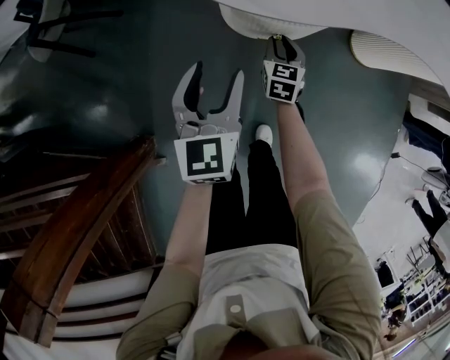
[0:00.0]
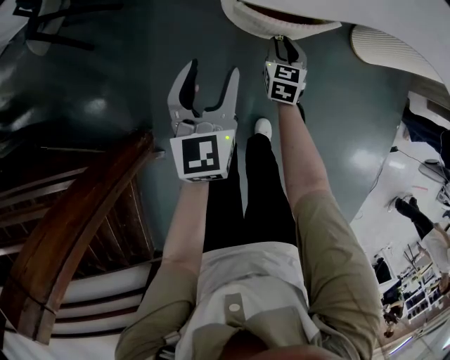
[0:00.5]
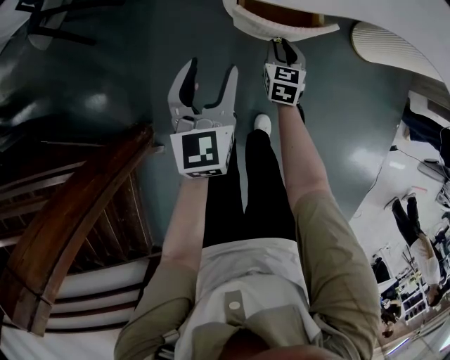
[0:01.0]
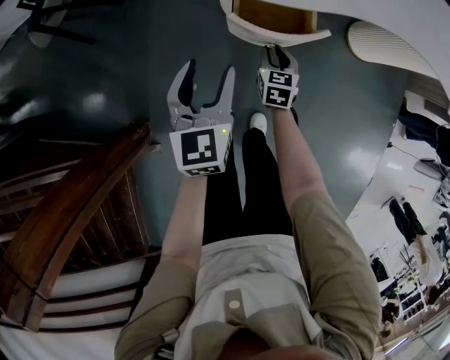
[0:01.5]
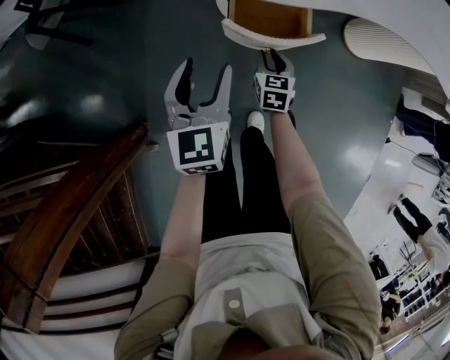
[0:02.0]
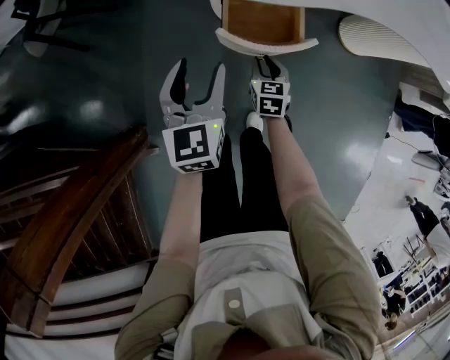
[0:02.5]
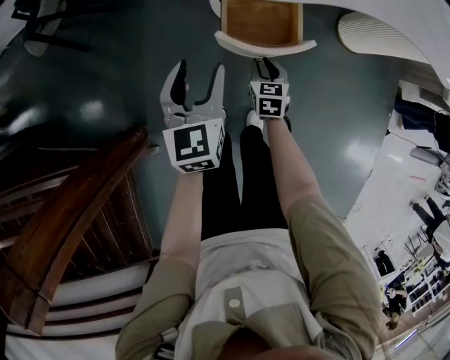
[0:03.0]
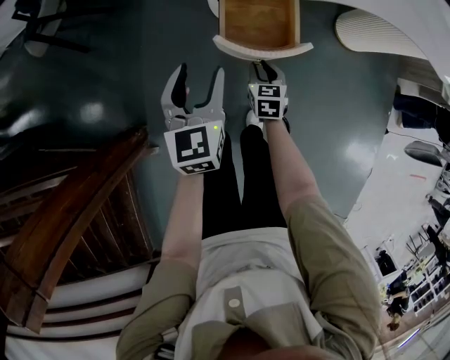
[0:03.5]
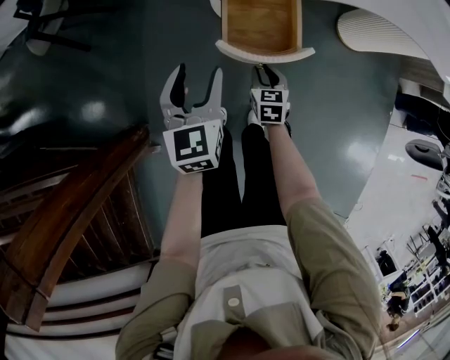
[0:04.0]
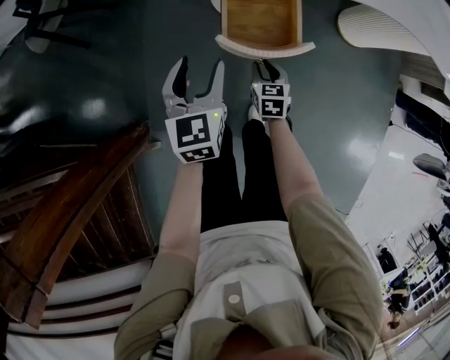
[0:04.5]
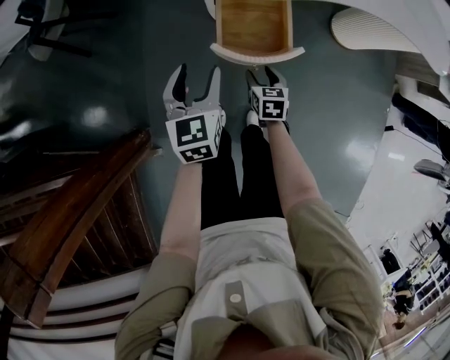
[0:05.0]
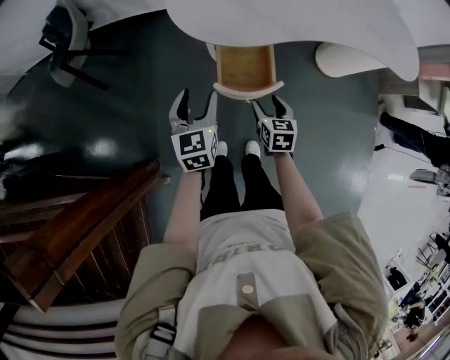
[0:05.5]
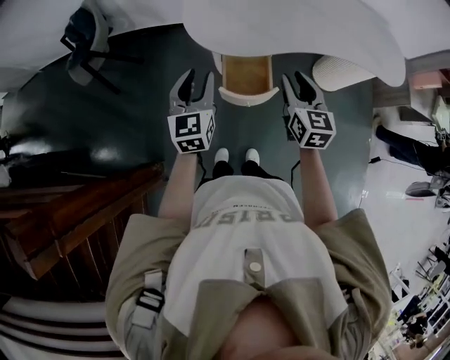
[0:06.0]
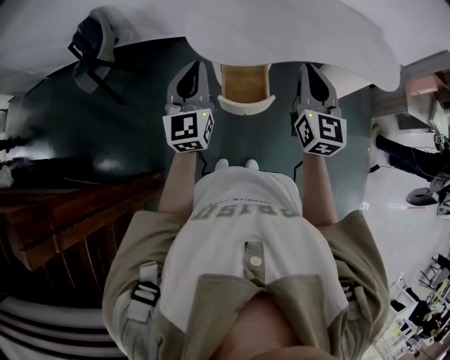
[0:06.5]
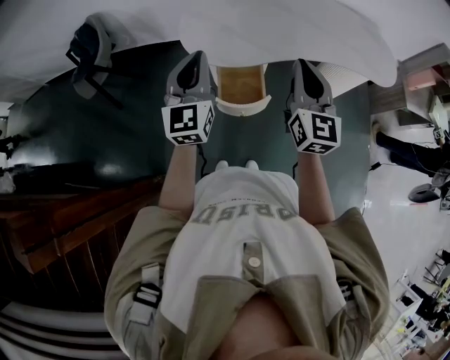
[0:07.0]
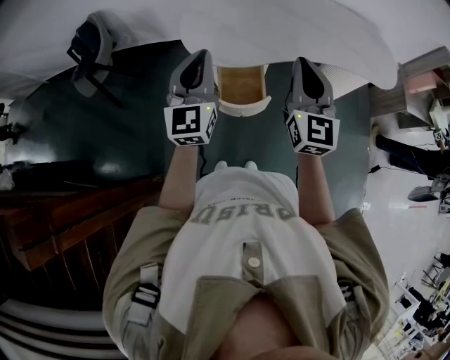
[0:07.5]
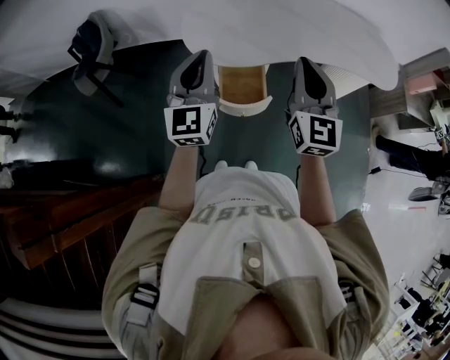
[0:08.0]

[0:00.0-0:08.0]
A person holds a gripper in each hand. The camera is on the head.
0:00.0 to 0:02.0: The right gripper travels backward by about 10 cm.
0:02.0 to 0:04.0: The right gripper shifts about 10 cm backward.
0:04.0 to 0:06.0: The left gripper is displaced upward by some 20 cm, and closes up. The right gripper heads upward, covering about 40 cm, and swivels approximately 30 degrees.
0:06.0 to 0:08.0: The left gripper heads upward and to the right, covering about 15 cm, and closes its fingers; the right gripper shifts approximately 15 cm upward, changes its angle by some 30 degrees, and closes up.

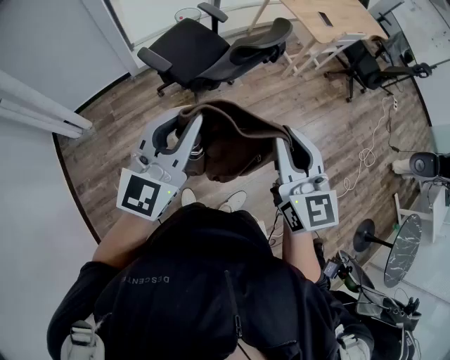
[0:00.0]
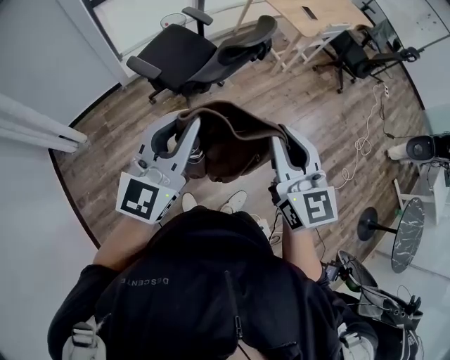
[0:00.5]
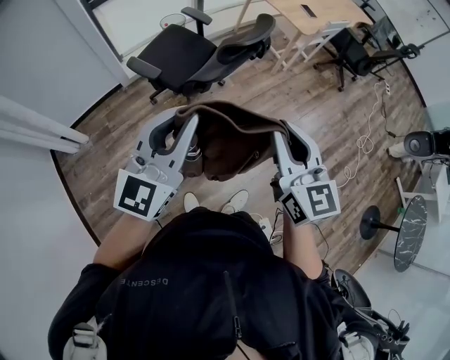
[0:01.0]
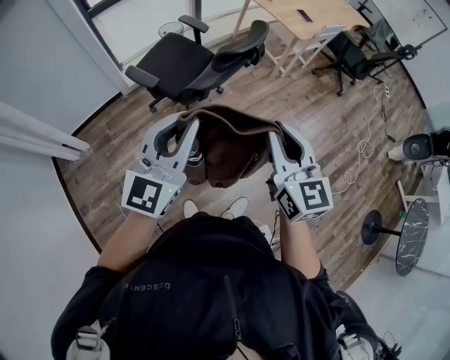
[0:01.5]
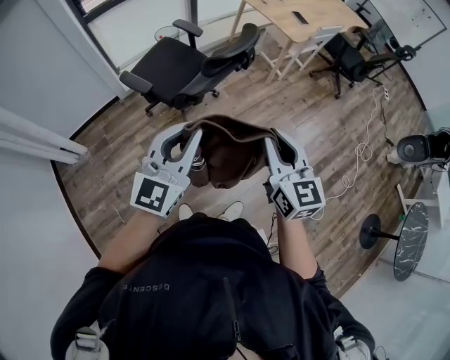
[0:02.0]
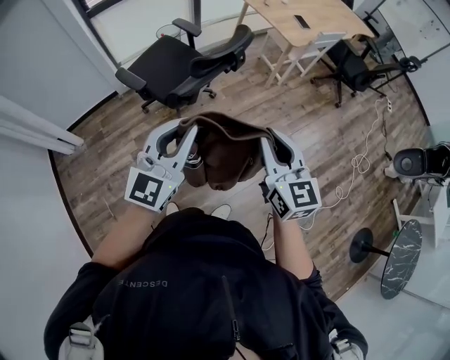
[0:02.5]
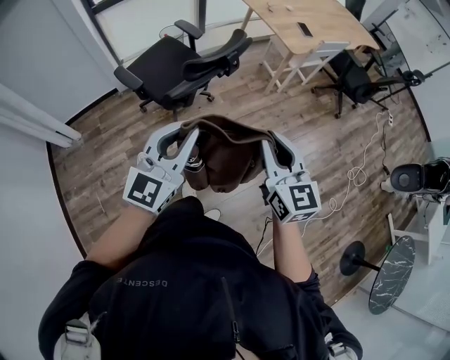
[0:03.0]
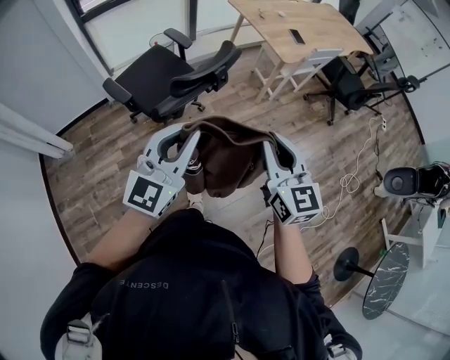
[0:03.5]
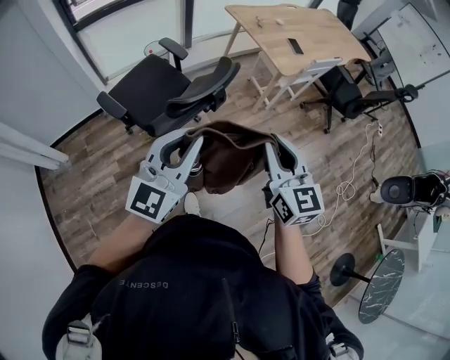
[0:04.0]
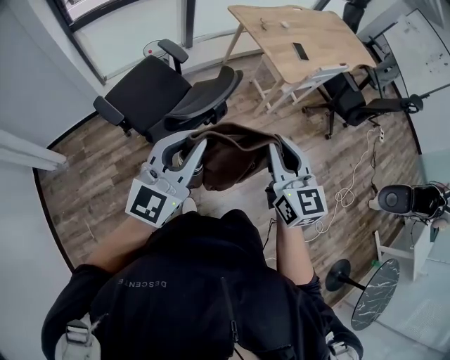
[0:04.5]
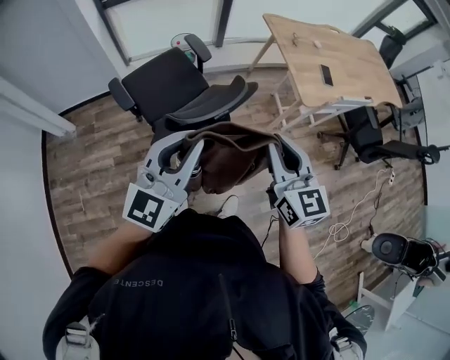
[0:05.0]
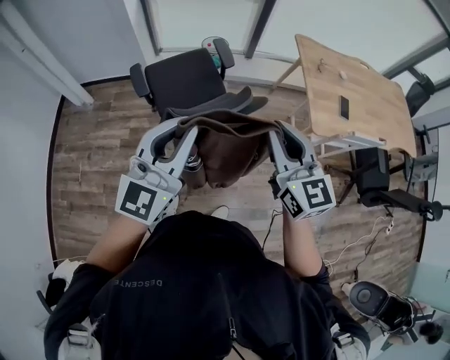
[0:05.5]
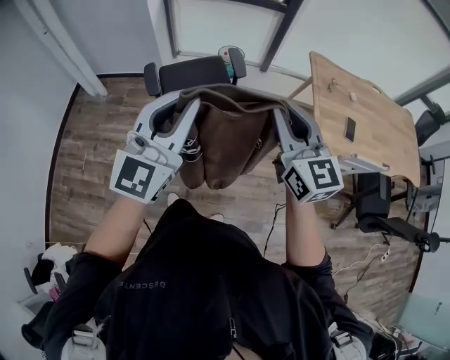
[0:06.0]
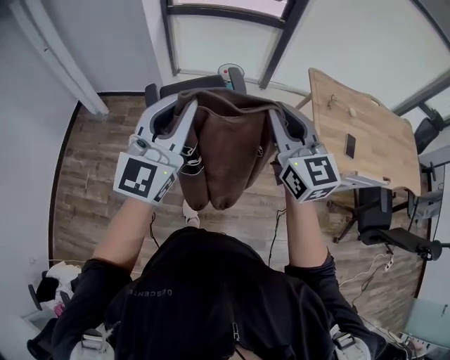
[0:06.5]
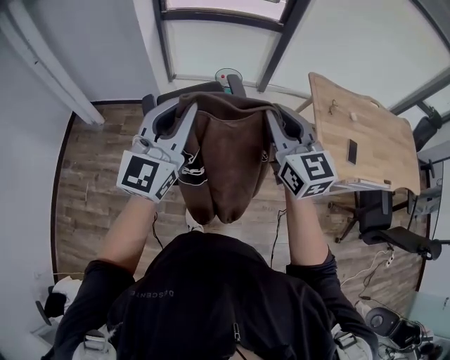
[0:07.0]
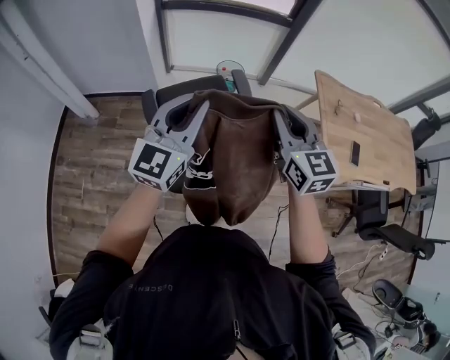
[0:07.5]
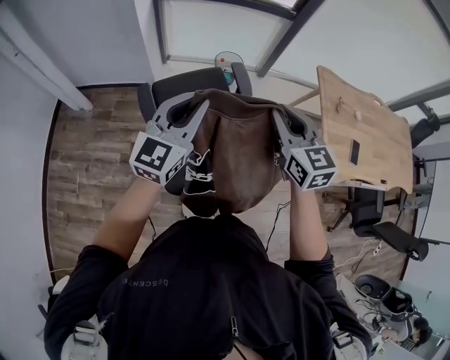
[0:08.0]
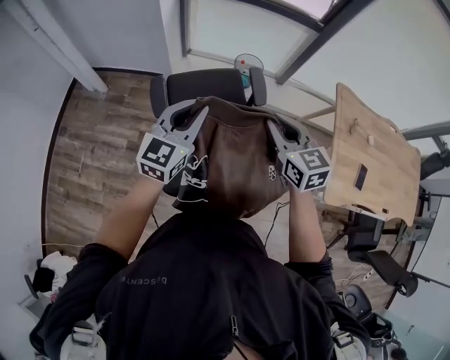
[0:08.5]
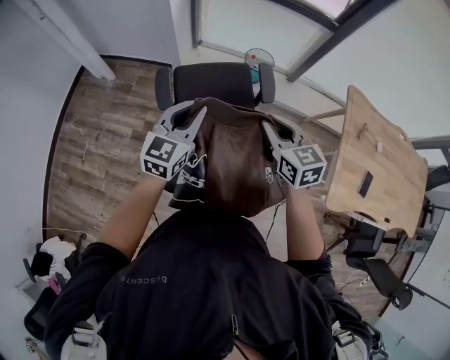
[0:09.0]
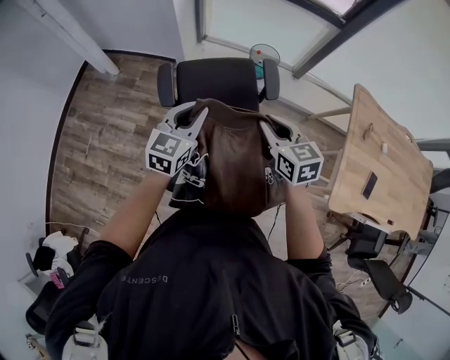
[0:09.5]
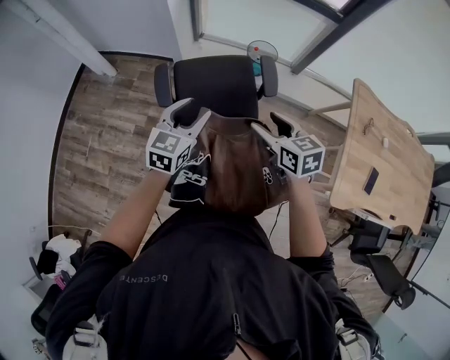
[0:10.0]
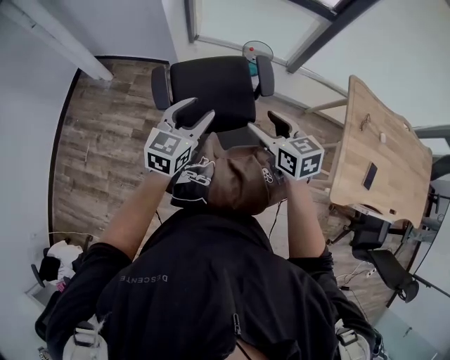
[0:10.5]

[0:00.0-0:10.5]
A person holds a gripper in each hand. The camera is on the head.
0:00.0 to 0:02.0: The right gripper goes about 10 cm to the right and downward. The left gripper is displaced to the right by about 10 cm.
0:02.0 to 0:04.0: The grippers both shift forward and to the right by approximately 25 cm.
0:04.0 to 0:06.5: The left gripper shifts by approximately 25 cm, and rotates some 40 degrees, while the right gripper ends up some 30 cm from where it was, and rotates some 40 degrees.
0:06.5 to 0:08.5: Both grippers travel together forward and downward, approximately 30 cm. The left gripper changes its angle by approximately 20 degrees, while the right gripper changes its angle by approximately 30 degrees.
0:08.5 to 0:10.5: Both grippers travel together downward, approximately 10 cm. The right gripper opens; the left gripper opens up.

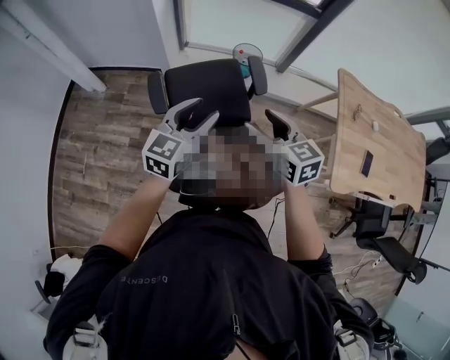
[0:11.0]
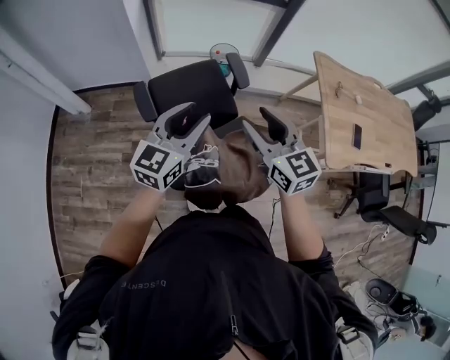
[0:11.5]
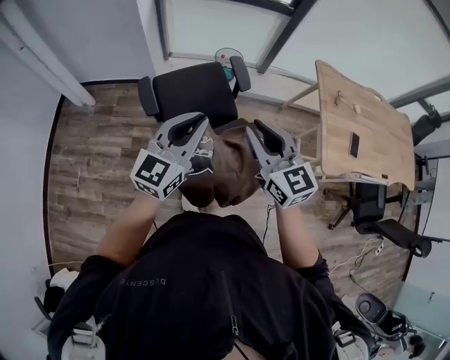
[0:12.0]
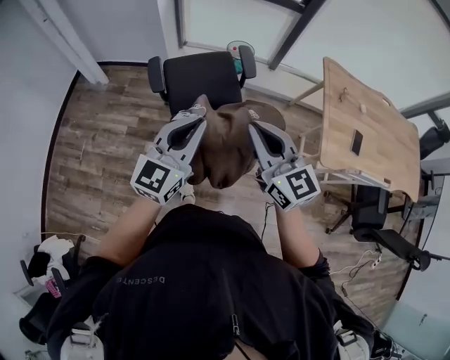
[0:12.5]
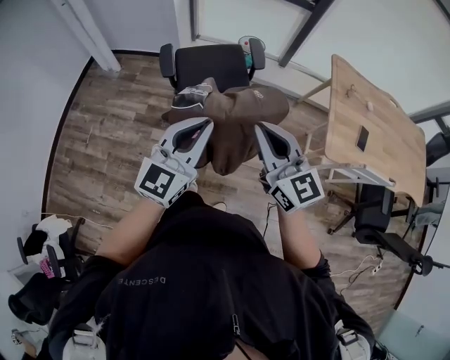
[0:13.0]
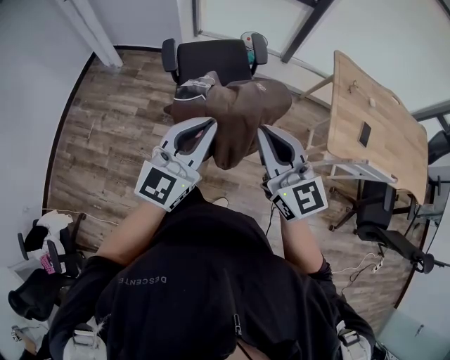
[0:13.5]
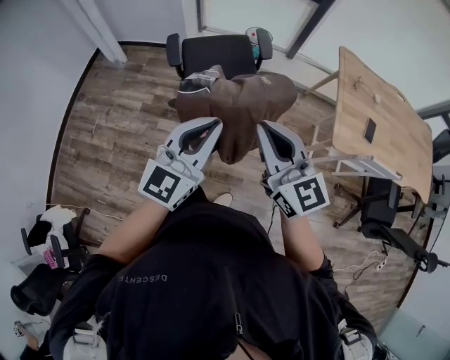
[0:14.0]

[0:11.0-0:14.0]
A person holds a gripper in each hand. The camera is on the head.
0:11.0 to 0:12.5: The right gripper shifts approximately 25 cm backward and upward, rotates roughly 30 degrees, and closes. Meanwhile the left gripper goes roughly 25 cm backward, and closes up.
0:12.5 to 0:14.0: Both grippers move backward, some 10 cm.

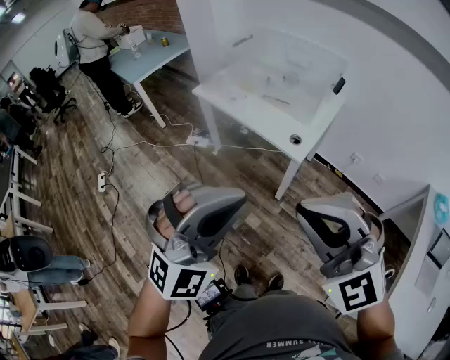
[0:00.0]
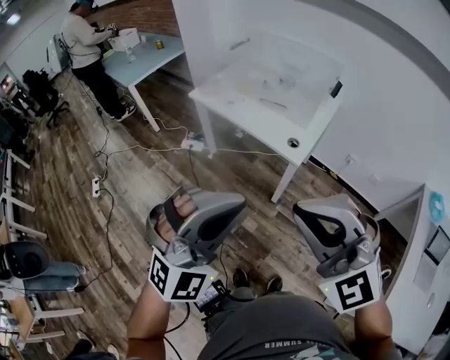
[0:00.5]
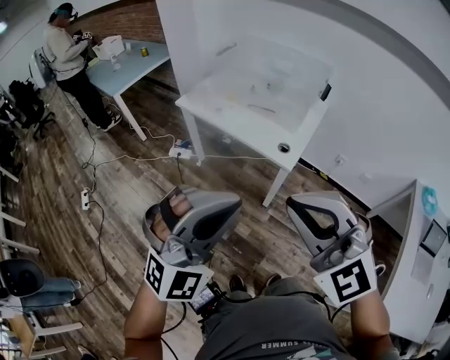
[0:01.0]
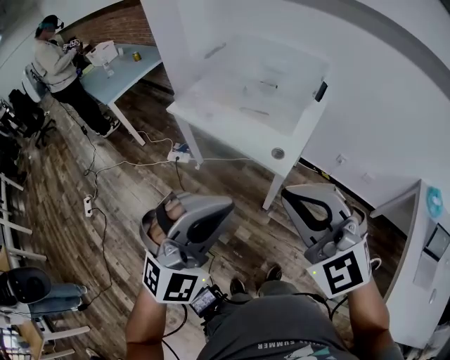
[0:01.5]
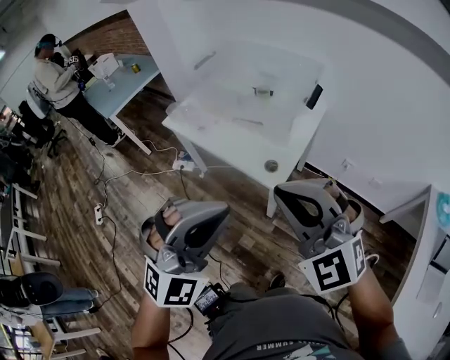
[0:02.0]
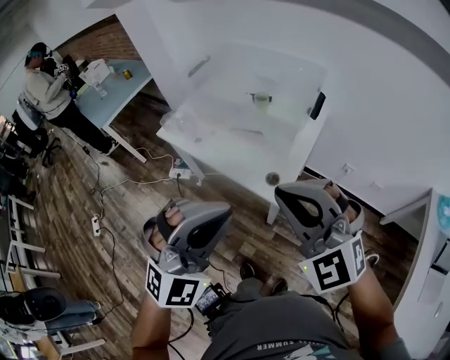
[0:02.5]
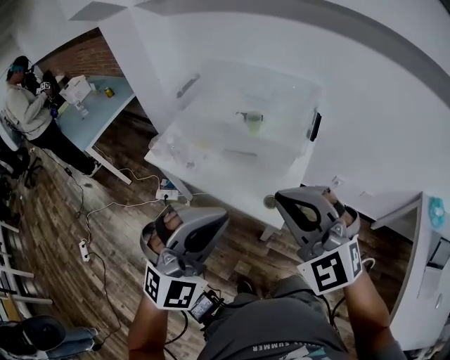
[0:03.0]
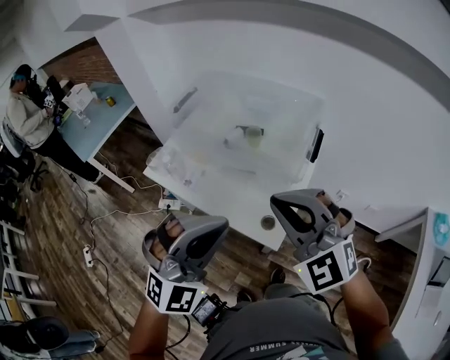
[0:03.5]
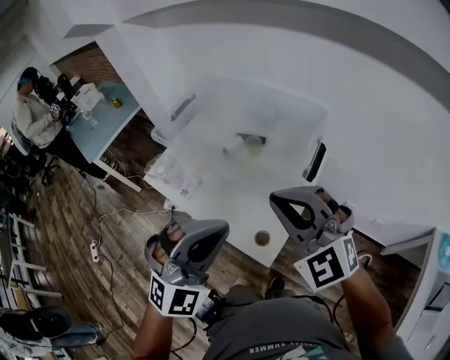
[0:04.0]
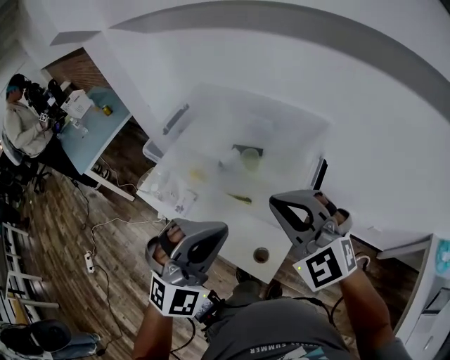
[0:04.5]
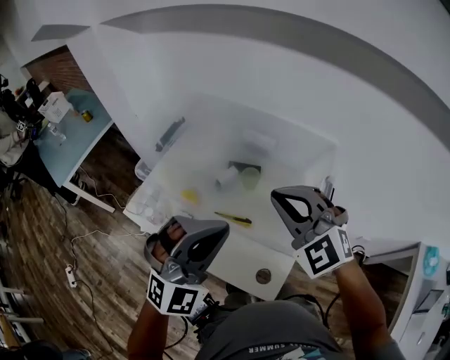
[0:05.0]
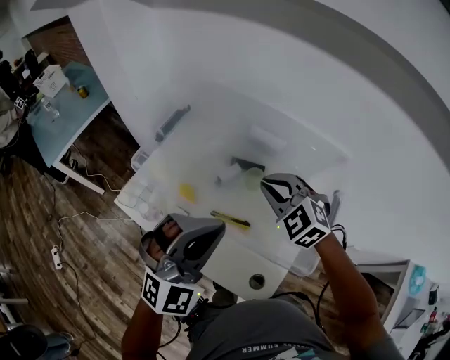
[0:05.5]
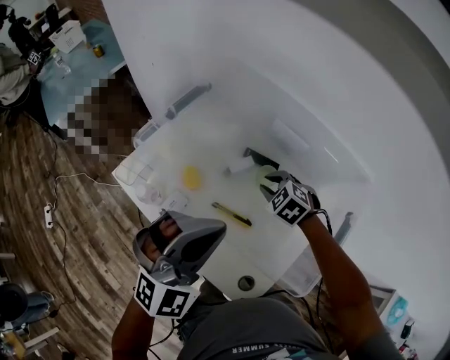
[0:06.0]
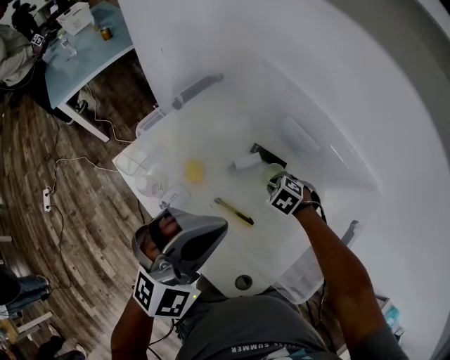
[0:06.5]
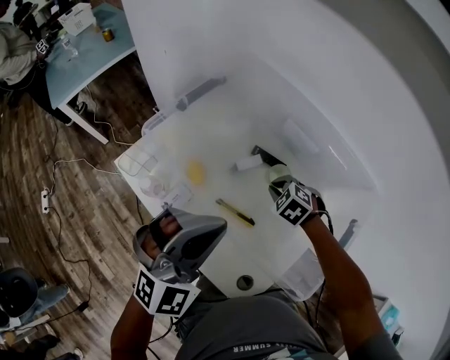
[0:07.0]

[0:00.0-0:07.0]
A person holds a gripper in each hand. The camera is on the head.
0:00.0 to 0:02.0: Both grippers move forward and to the right, some 20 cm.
0:02.0 to 0:03.5: The grippers both shift forward by roughly 20 cm.
0:03.5 to 0:05.0: Both grippers travel together forward, approximately 25 cm.
0:05.0 to 0:07.0: The left gripper shifts by some 10 cm, while the right gripper shifts about 30 cm downward, and tips its fingers downward by about 50 degrees.
